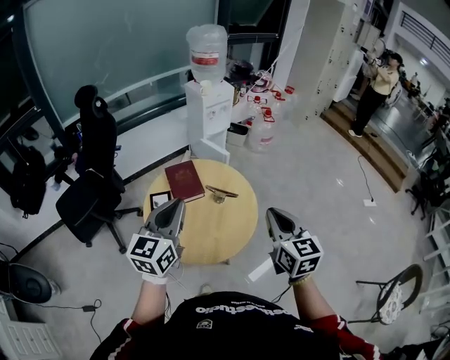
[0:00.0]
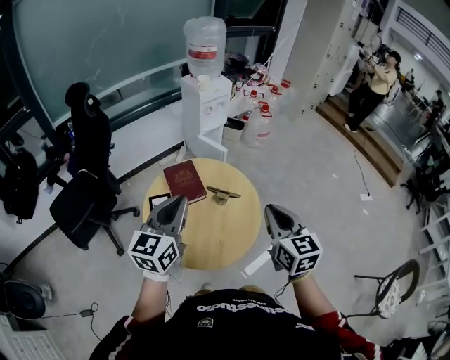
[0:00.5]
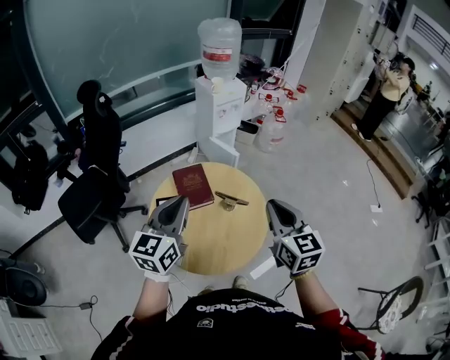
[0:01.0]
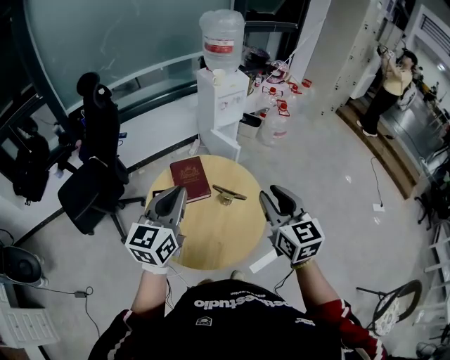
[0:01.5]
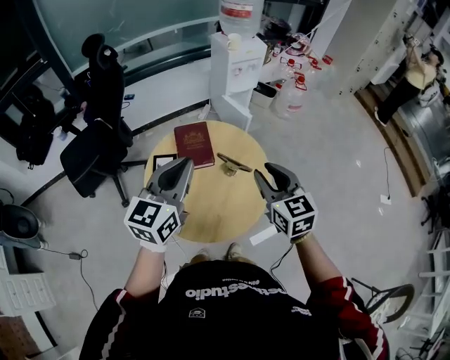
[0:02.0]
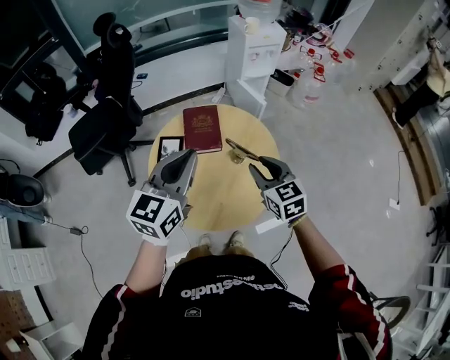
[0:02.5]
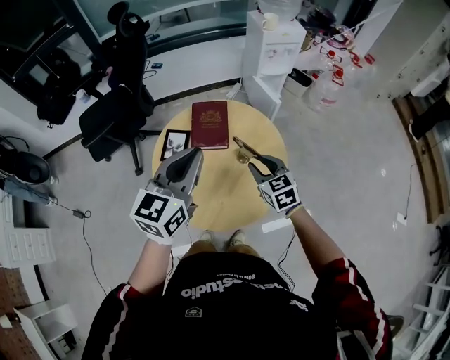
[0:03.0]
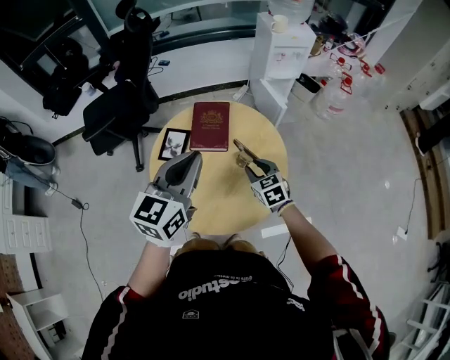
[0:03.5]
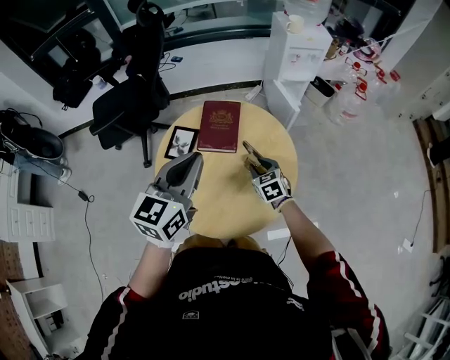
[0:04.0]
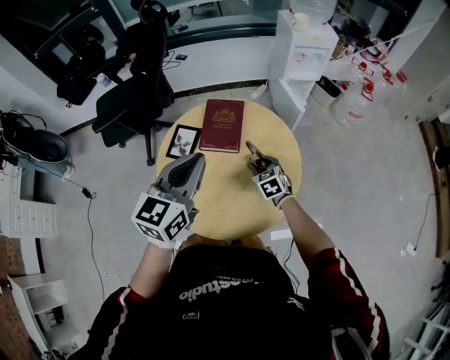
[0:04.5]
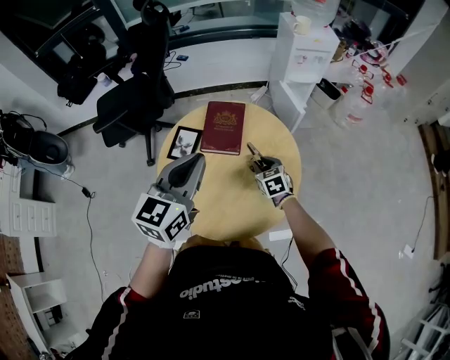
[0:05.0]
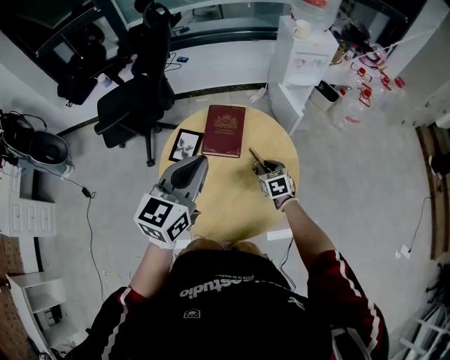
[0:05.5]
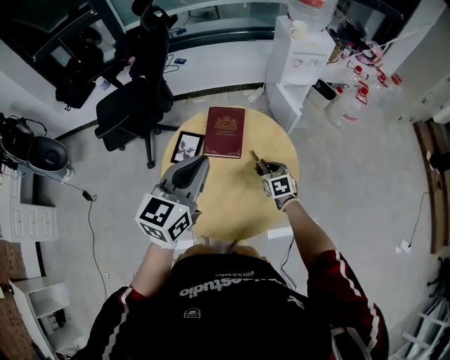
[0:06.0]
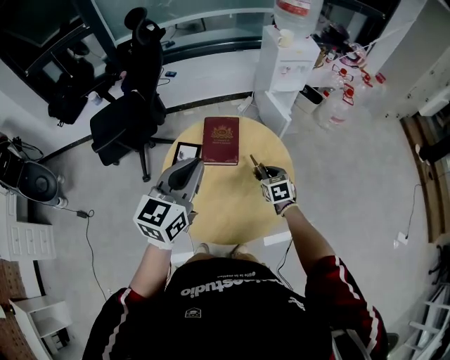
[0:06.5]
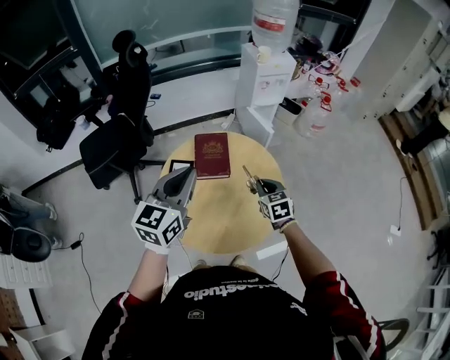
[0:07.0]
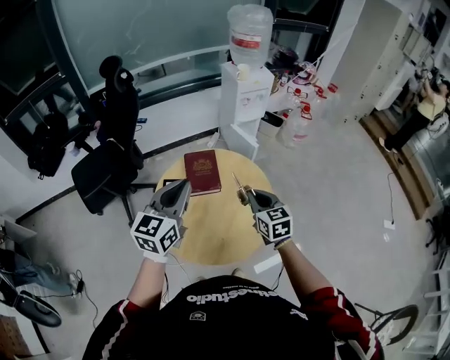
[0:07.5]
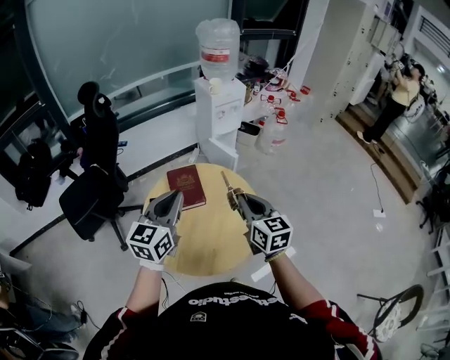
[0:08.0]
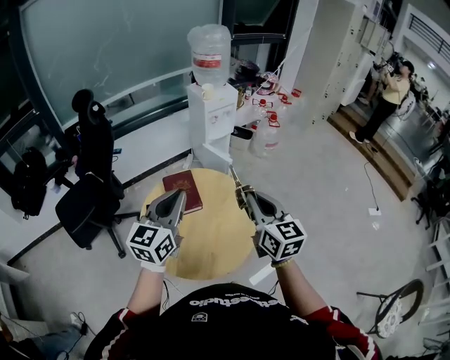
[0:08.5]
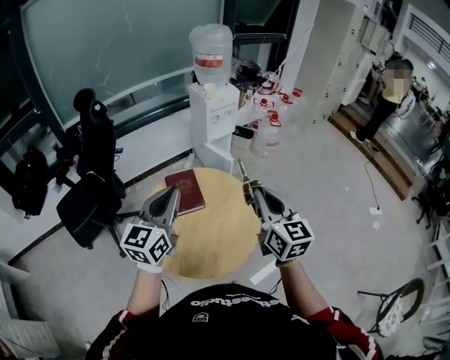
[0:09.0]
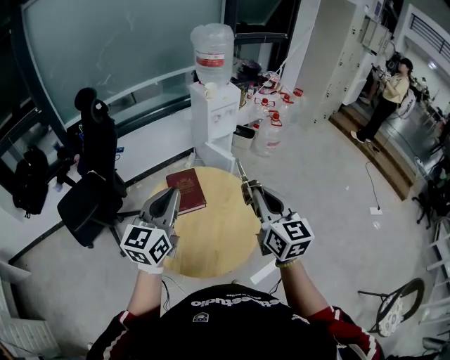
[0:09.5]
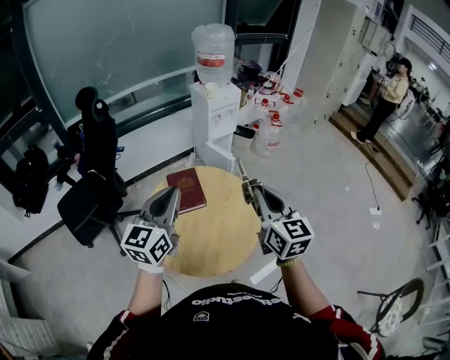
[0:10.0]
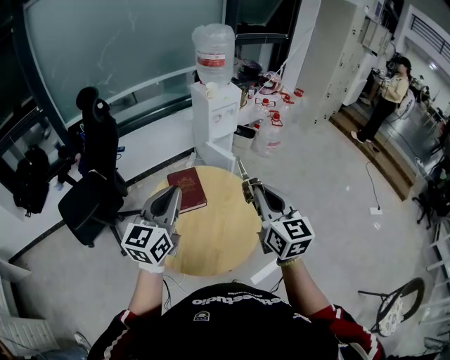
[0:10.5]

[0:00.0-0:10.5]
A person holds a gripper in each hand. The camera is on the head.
0:00.0 to 0:02.0: The left gripper goes roughly 10 cm forward. The right gripper shifts roughly 15 cm forward and downward, and opens up.
0:02.0 to 0:04.0: The right gripper travels downward by about 30 cm, and changes its angle by about 30 degrees; the left gripper travels downward by roughly 10 cm.
0:04.0 to 0:06.5: The right gripper moves approximately 5 cm, and closes. The left gripper changes place by some 5 cm.
0:06.5 to 0:08.5: The left gripper is displaced upward by about 5 cm, while the right gripper heads upward and backward, covering approximately 35 cm, and tips its fingers upward by about 40 degrees.
0:08.5 to 0:10.5: There are only small adjustments of the grippers.

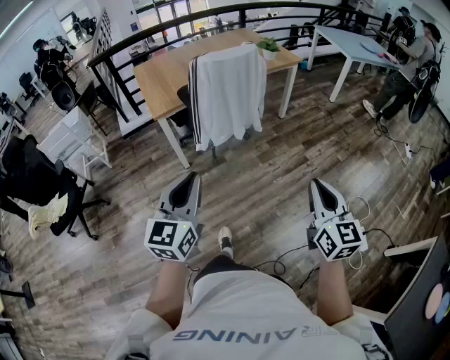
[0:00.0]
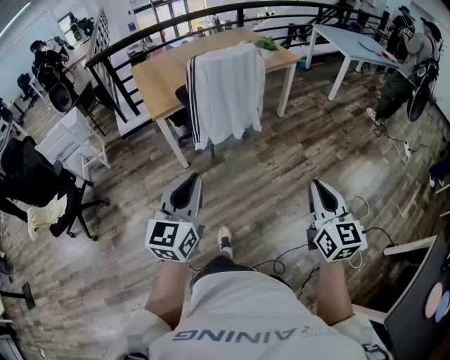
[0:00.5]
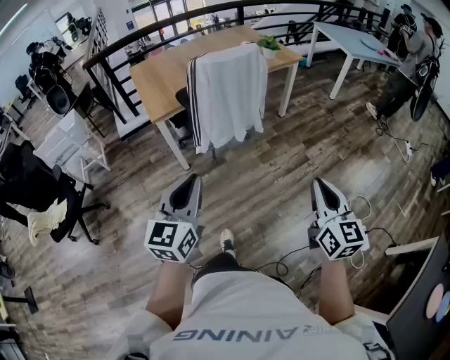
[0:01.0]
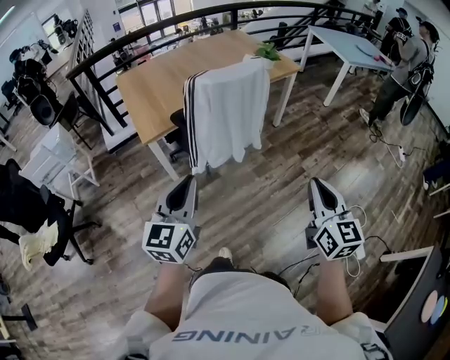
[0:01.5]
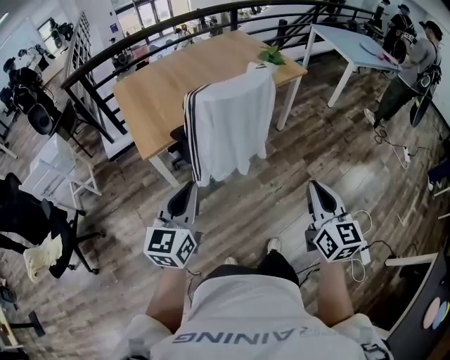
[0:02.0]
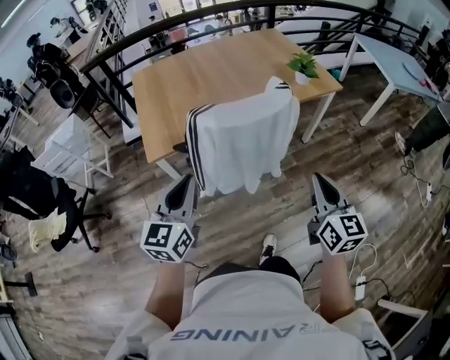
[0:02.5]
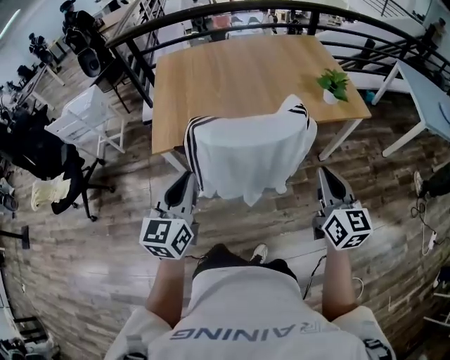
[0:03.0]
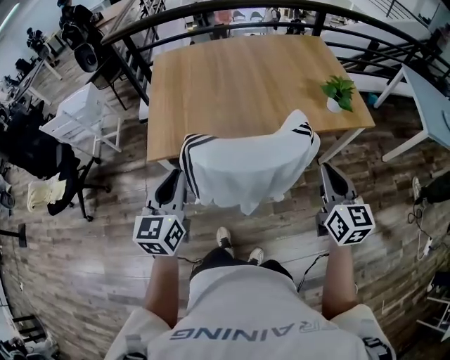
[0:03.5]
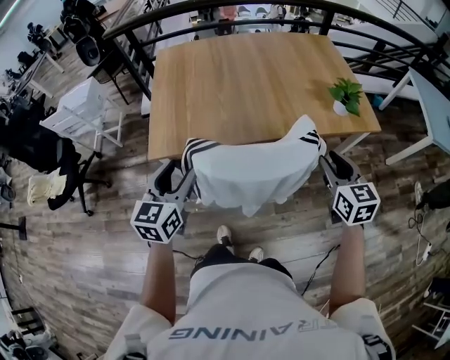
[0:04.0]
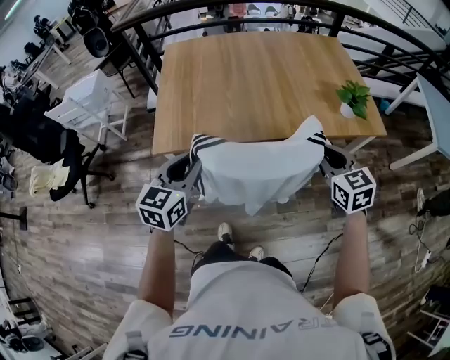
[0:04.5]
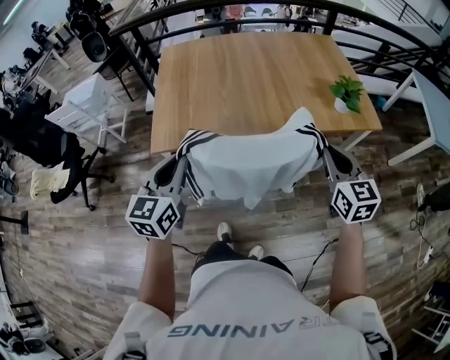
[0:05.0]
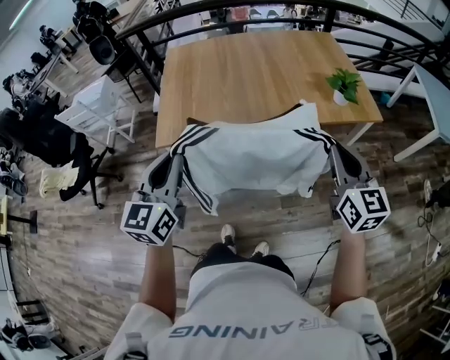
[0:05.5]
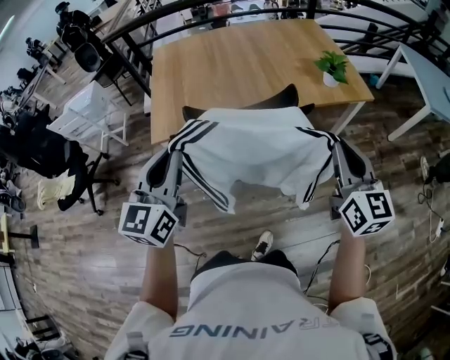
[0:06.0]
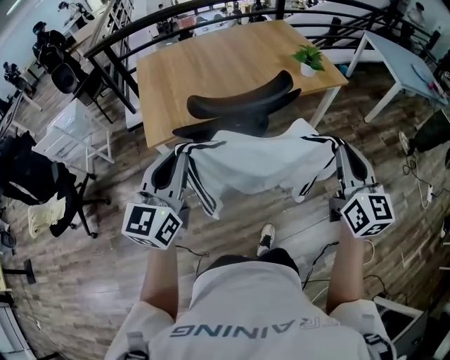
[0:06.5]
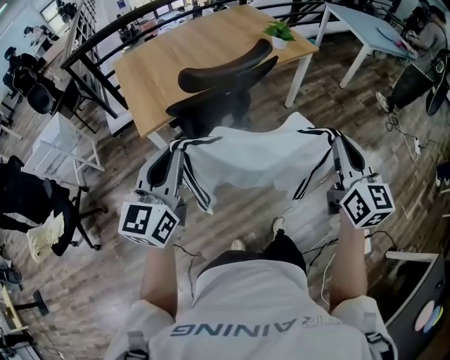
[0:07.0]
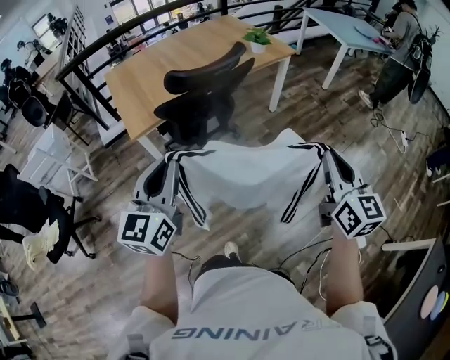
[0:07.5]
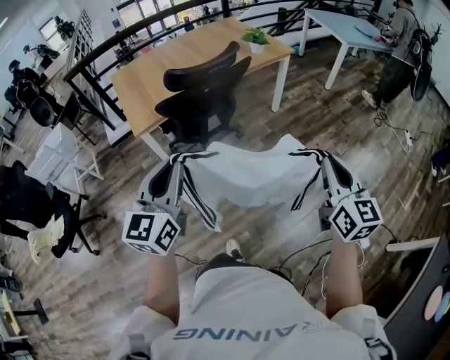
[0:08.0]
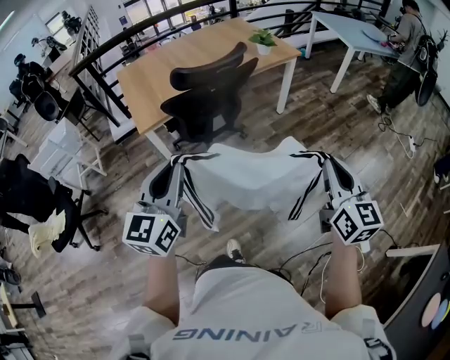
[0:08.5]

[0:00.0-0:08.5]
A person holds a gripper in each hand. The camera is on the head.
0:00.0 to 0:02.0: The two grippers go approximately 25 cm forward.
0:02.0 to 0:04.0: The left gripper shifts by some 30 cm, changes its angle by some 30 degrees, and opens up. The right gripper moves roughly 50 cm, swivels approximately 30 degrees, and opens.
0:04.0 to 0:06.5: The grippers both shift backward and upward by approximately 25 cm. The left gripper swivels roughly 20 degrees, and closes up. The right gripper swivels about 30 degrees, and closes up.
0:06.5 to 0:08.5: The grippers both shift backward by approximately 25 cm.

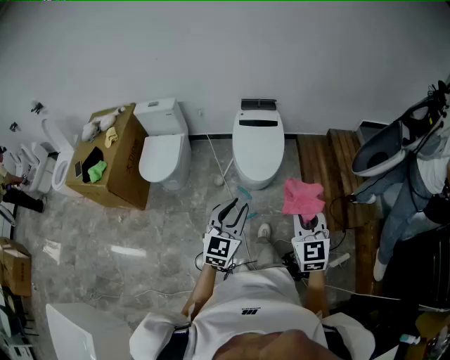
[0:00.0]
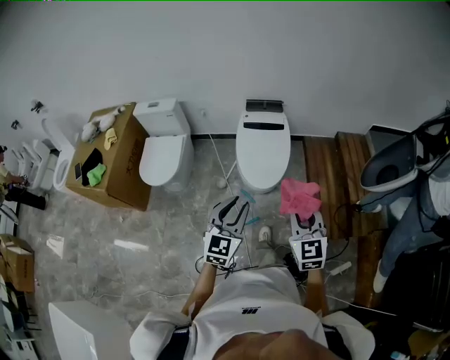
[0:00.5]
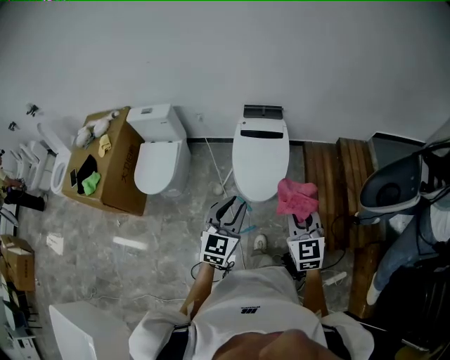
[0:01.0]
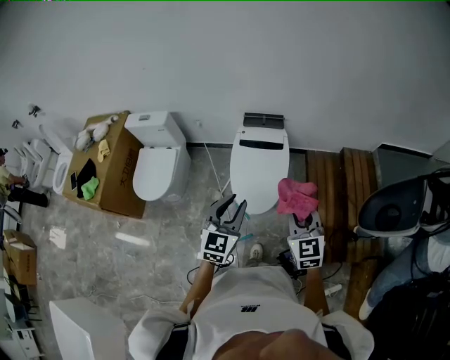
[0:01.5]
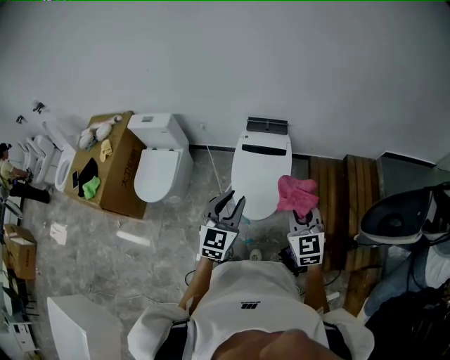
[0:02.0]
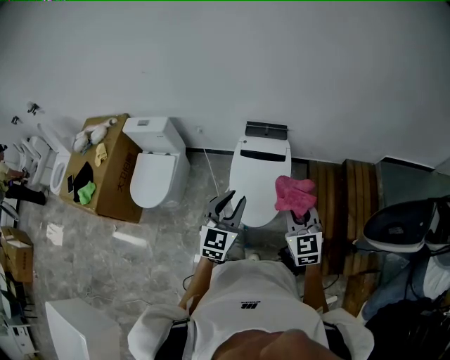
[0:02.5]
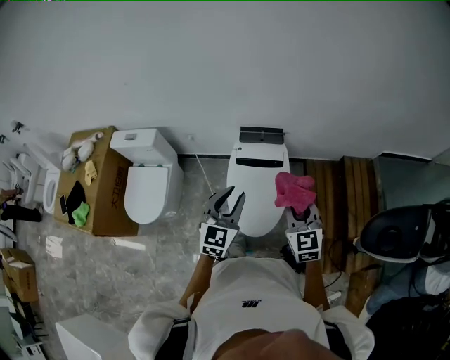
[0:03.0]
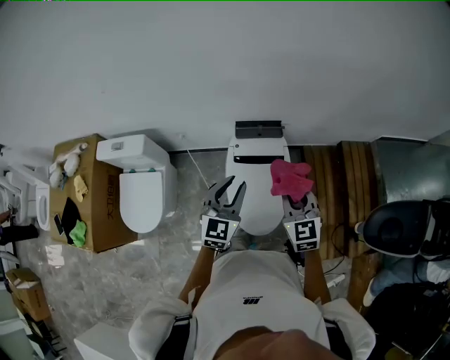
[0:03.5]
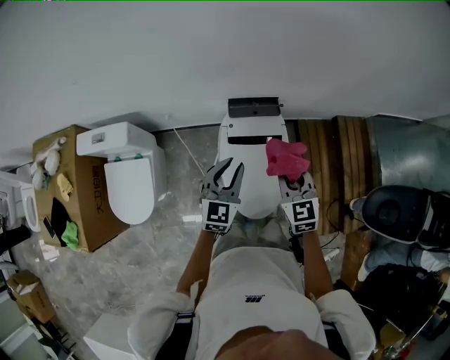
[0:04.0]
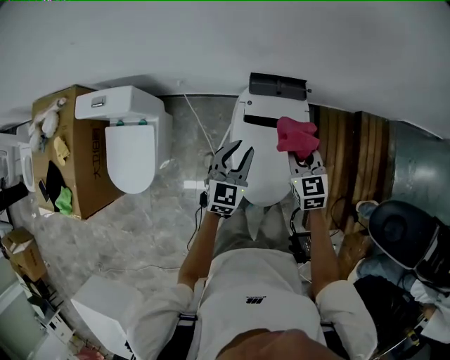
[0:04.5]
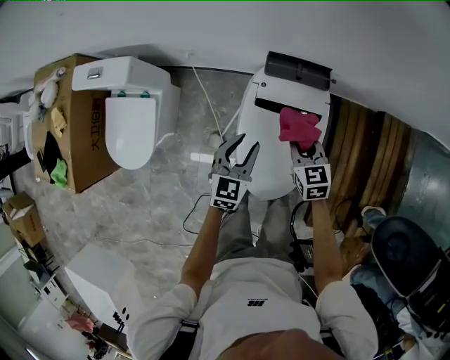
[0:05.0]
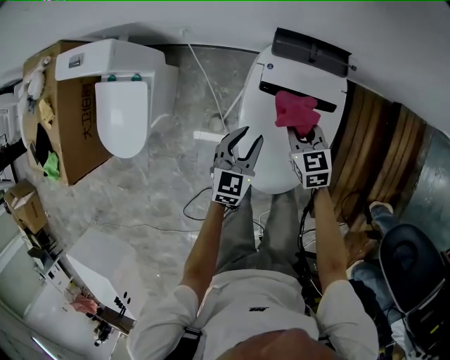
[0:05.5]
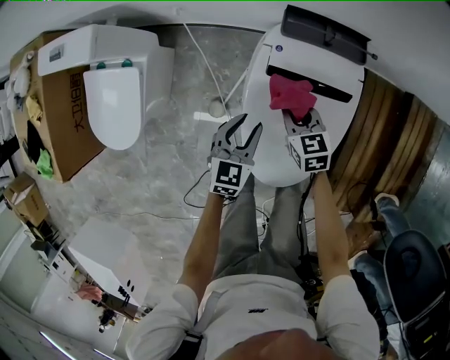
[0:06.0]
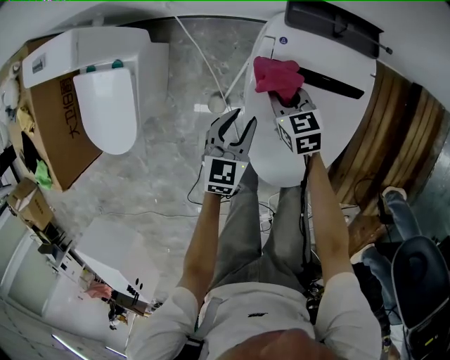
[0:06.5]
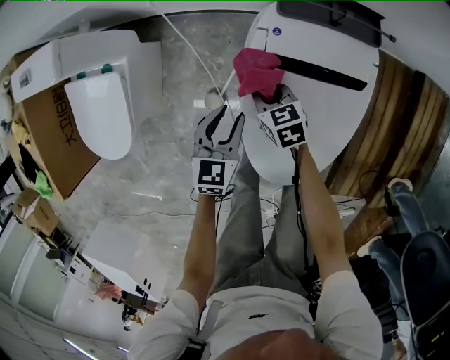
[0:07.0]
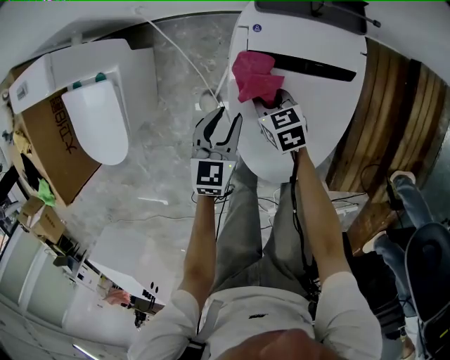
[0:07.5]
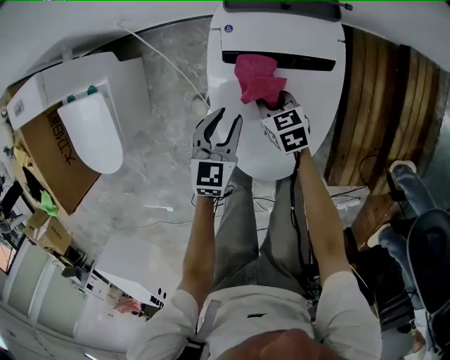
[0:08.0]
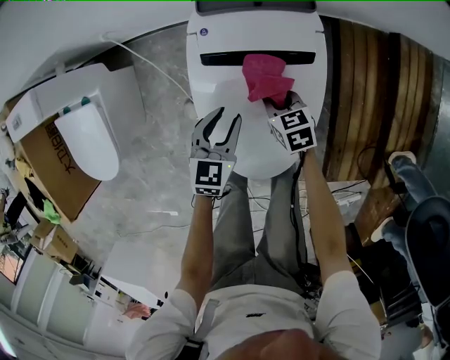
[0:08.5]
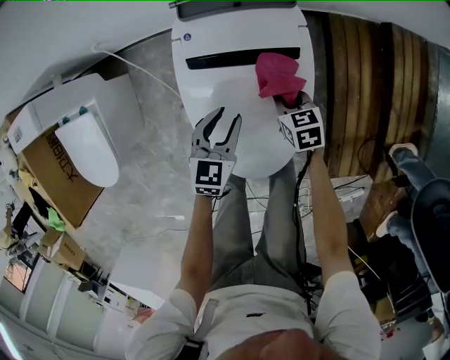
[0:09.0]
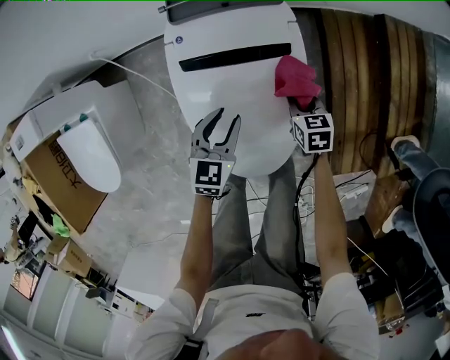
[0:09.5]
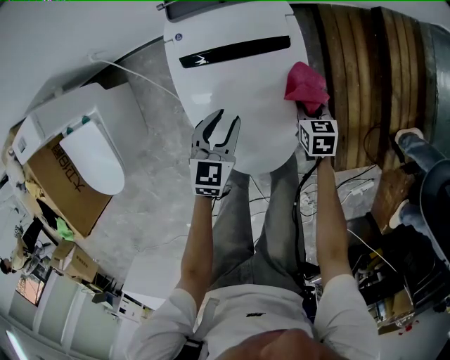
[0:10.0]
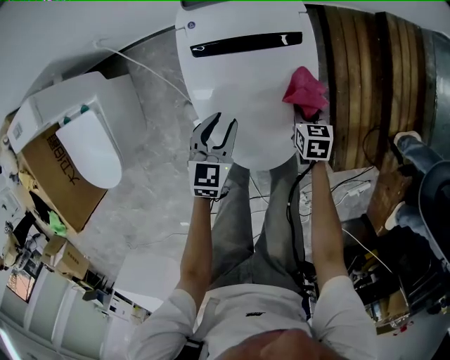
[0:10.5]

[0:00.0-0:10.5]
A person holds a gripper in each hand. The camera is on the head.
0:00.0 to 0:02.0: The two grippers go approximately 35 cm forward.
0:02.0 to 0:04.0: The right gripper is displaced forward and to the left by about 35 cm; the left gripper shifts some 35 cm forward.
0:04.0 to 0:06.5: Both grippers travel together downward, about 40 cm. The left gripper rotates roughly 30 degrees, while the right gripper changes its angle by about 30 degrees.
0:06.5 to 0:08.5: The left gripper travels to the right by roughly 10 cm. Meanwhile the right gripper is displaced to the right, backward and downward by roughly 15 cm.
0:08.5 to 0:10.5: The right gripper is displaced to the right and backward by about 15 cm, and swivels some 30 degrees; the left gripper travels backward by roughly 5 cm.
